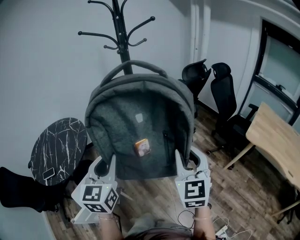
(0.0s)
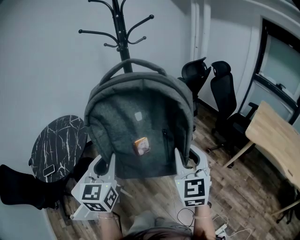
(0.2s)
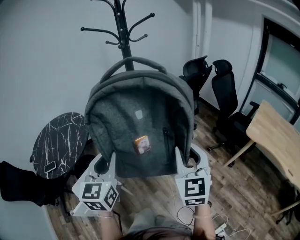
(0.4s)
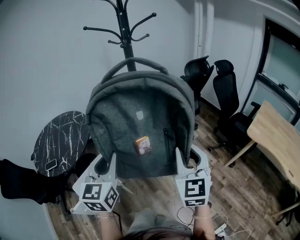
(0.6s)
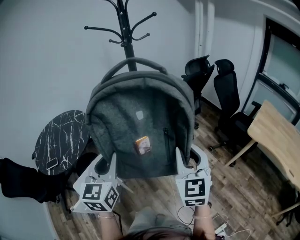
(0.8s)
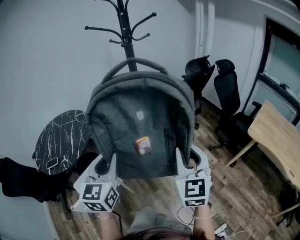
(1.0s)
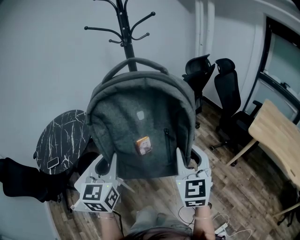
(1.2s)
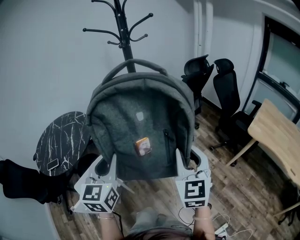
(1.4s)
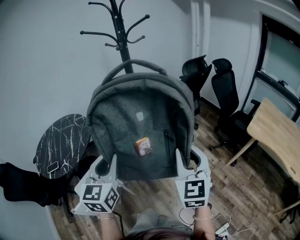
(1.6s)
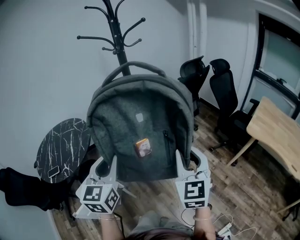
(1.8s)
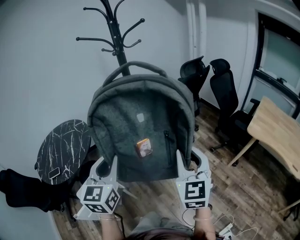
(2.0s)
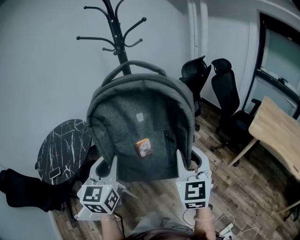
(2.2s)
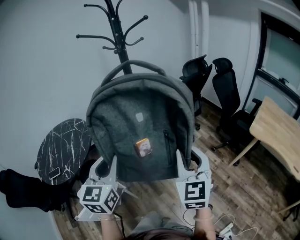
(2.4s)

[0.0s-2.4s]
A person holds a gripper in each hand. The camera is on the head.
0.0s to 1.2s: The left gripper moves backward, about 5 cm.
1.2s to 2.4s: The grippers move only a little.

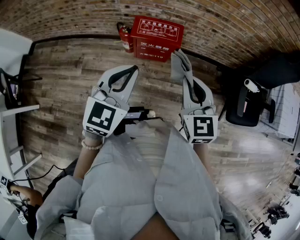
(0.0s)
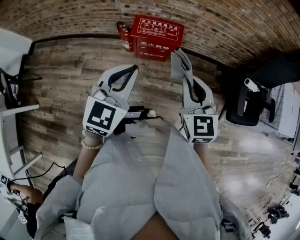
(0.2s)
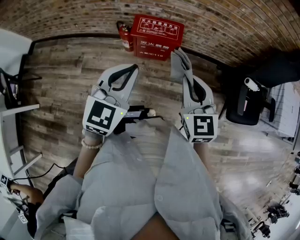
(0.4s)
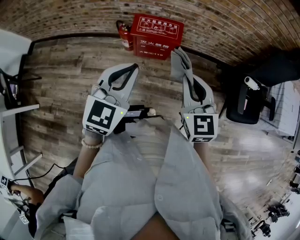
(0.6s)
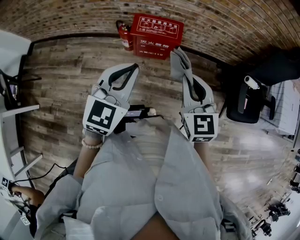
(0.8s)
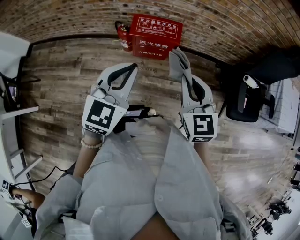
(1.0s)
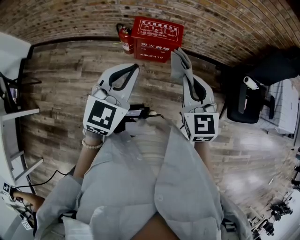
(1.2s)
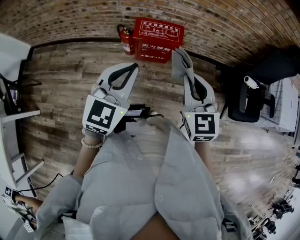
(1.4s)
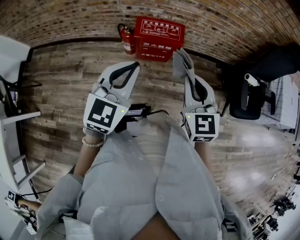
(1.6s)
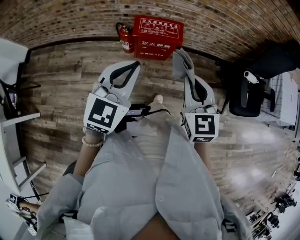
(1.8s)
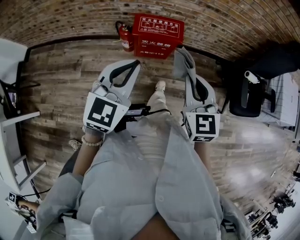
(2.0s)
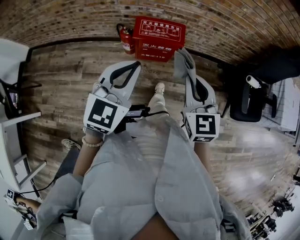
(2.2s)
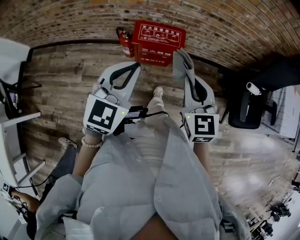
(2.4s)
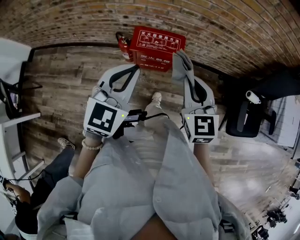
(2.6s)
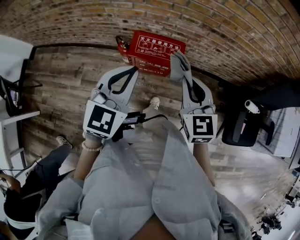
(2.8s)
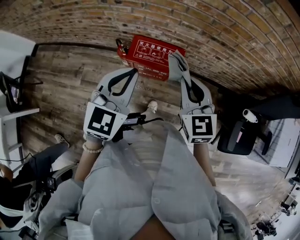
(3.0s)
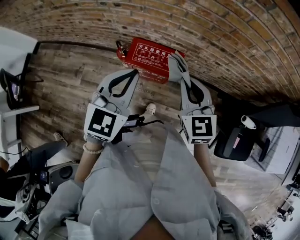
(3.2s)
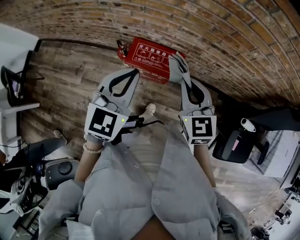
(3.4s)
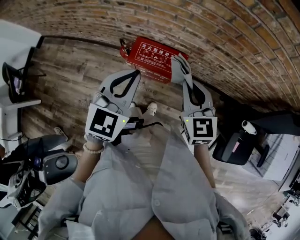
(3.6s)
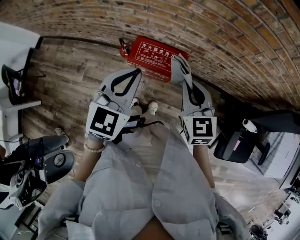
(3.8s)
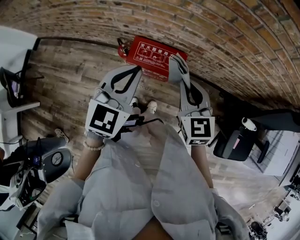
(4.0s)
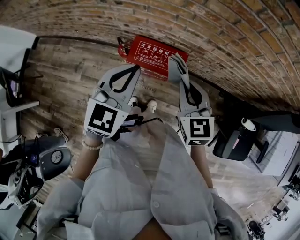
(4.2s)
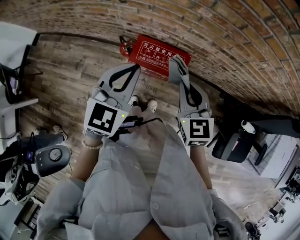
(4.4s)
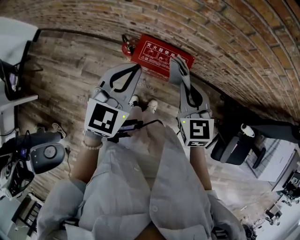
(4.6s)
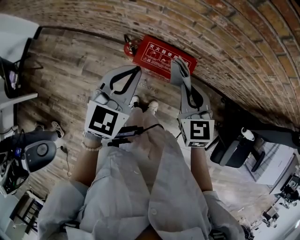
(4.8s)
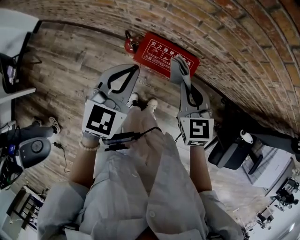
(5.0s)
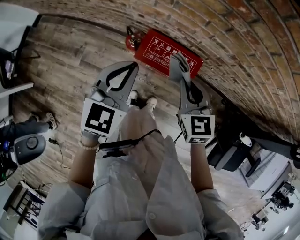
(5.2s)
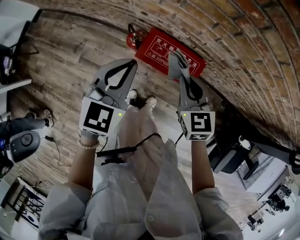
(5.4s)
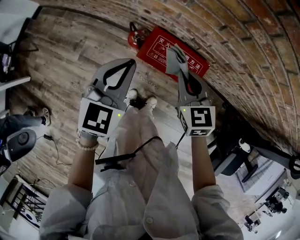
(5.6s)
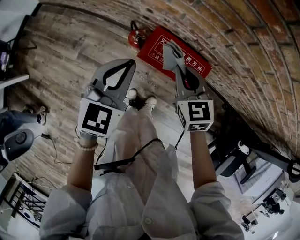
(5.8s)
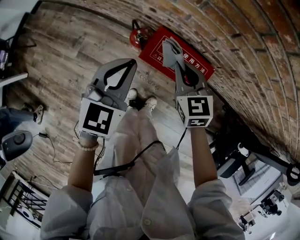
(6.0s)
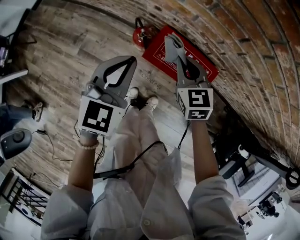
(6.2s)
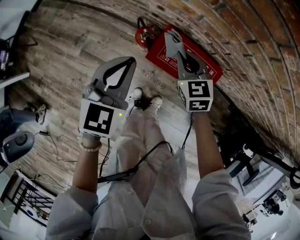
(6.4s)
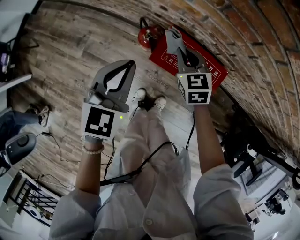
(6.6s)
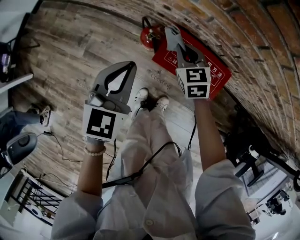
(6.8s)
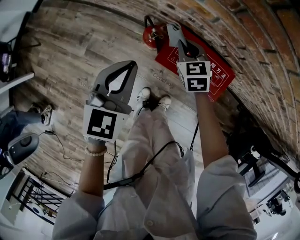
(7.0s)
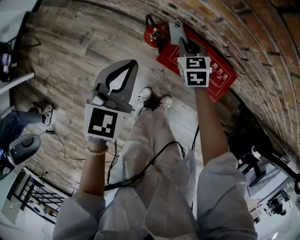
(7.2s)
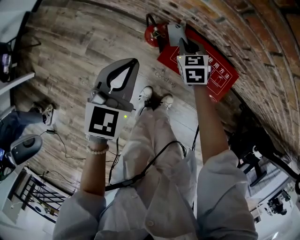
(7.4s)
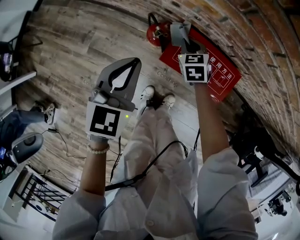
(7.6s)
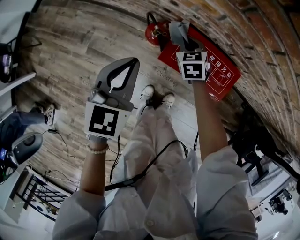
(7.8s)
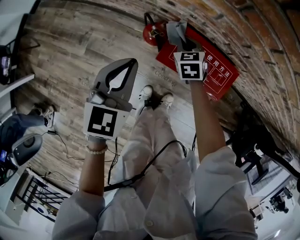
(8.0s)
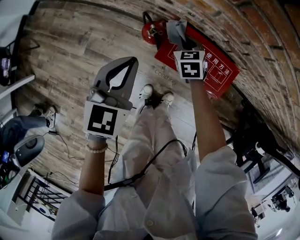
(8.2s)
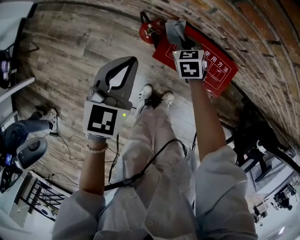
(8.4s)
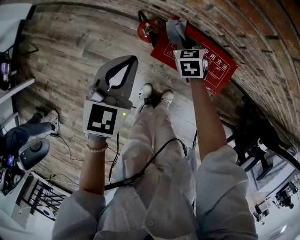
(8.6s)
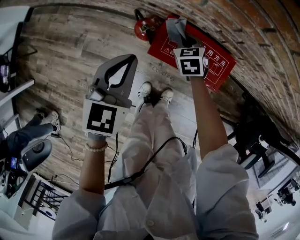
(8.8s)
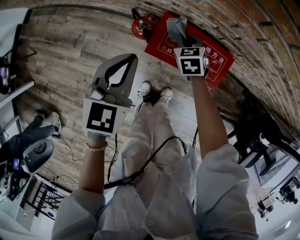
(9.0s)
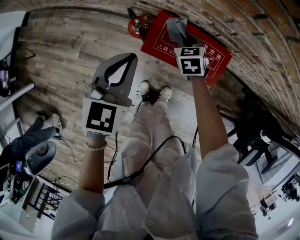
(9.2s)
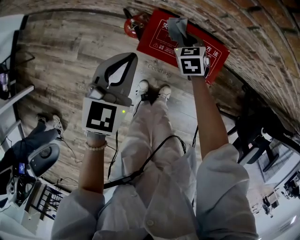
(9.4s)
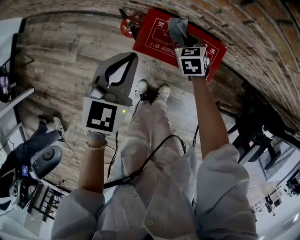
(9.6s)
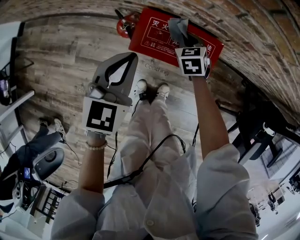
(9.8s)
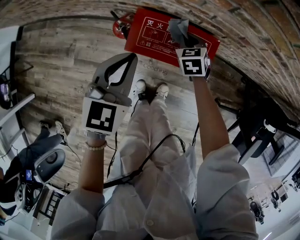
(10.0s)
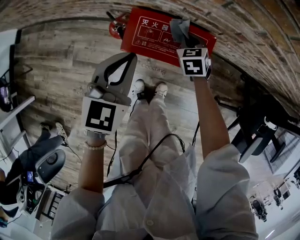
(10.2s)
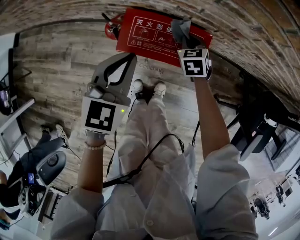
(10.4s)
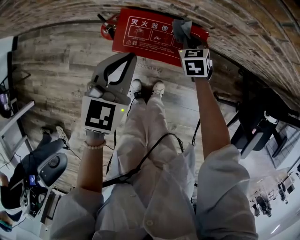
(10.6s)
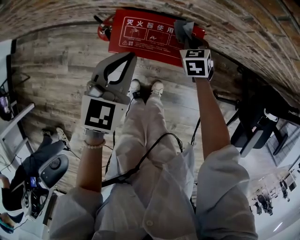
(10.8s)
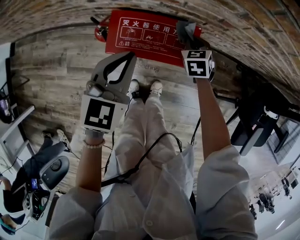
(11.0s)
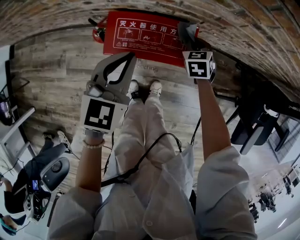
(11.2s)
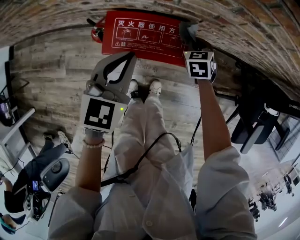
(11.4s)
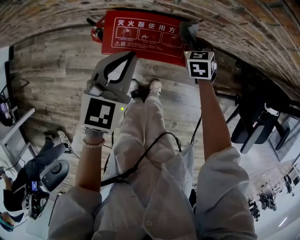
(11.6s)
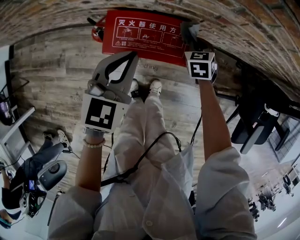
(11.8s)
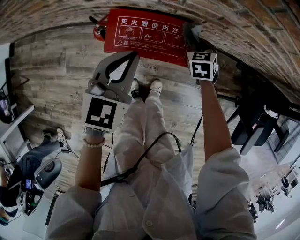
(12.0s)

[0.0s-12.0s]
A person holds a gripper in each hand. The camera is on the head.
0.0s to 1.6s: The grippers make only small movements.
1.6s to 3.0s: Both grippers move forward, some 20 cm.
3.0s to 4.4s: Both grippers travel together forward, some 5 cm.
4.4s to 6.0s: The left gripper moves downward, to the left and forward, about 20 cm, while the right gripper is displaced downward, forward and to the left by roughly 25 cm.
6.0s to 7.6s: The left gripper travels downward and to the left by some 10 cm. Meanwhile the right gripper travels downward and forward by some 25 cm.
7.6s to 9.0s: The right gripper goes approximately 5 cm to the right.
9.0s to 10.4s: The two grippers go roughly 15 cm to the right.
10.4s to 12.0s: The left gripper travels to the right by approximately 5 cm. Meanwhile the right gripper is displaced to the right by roughly 10 cm.

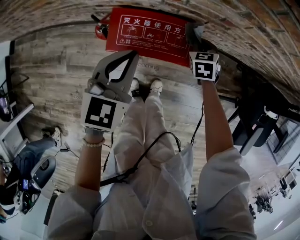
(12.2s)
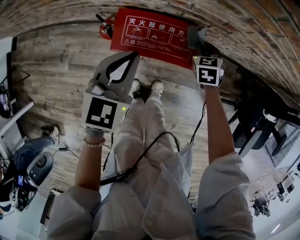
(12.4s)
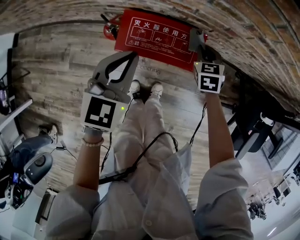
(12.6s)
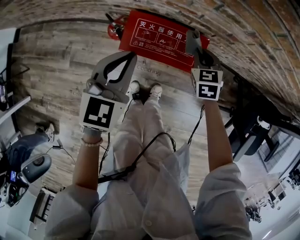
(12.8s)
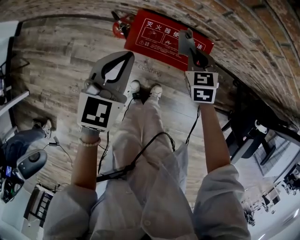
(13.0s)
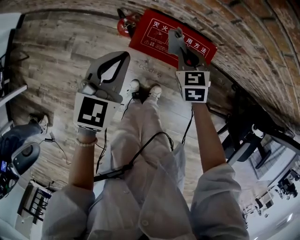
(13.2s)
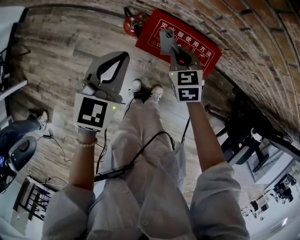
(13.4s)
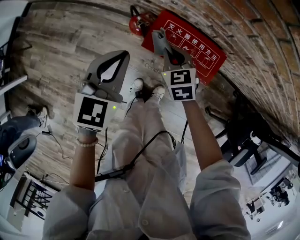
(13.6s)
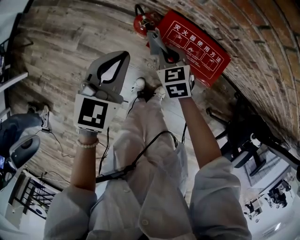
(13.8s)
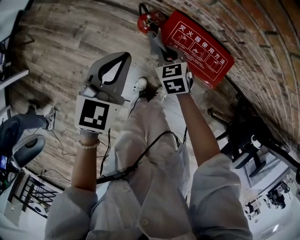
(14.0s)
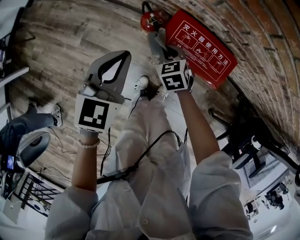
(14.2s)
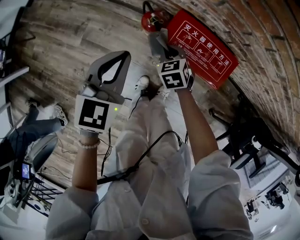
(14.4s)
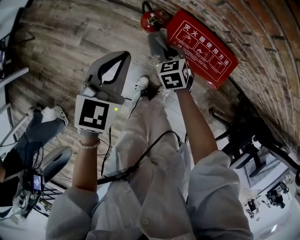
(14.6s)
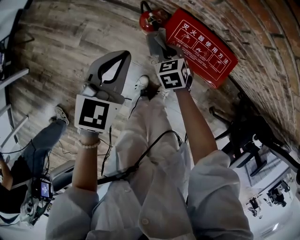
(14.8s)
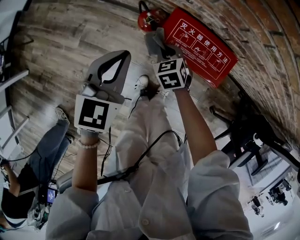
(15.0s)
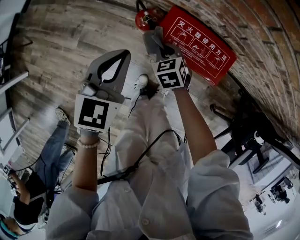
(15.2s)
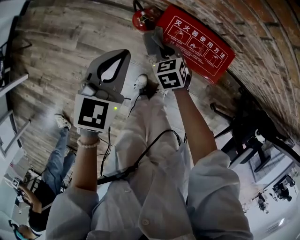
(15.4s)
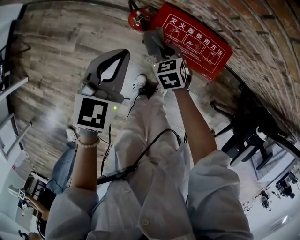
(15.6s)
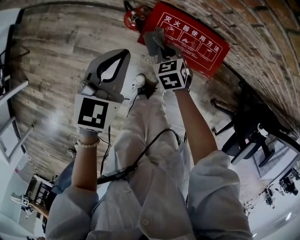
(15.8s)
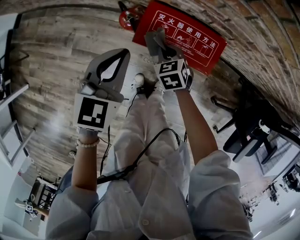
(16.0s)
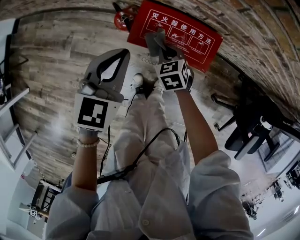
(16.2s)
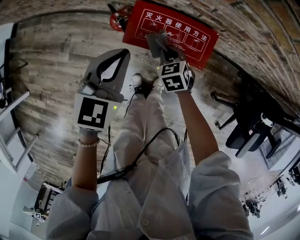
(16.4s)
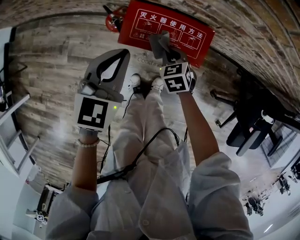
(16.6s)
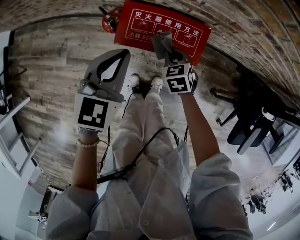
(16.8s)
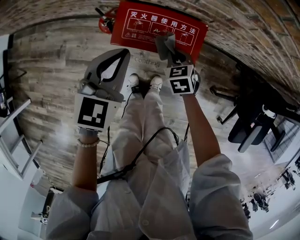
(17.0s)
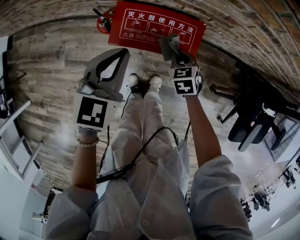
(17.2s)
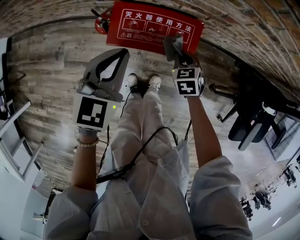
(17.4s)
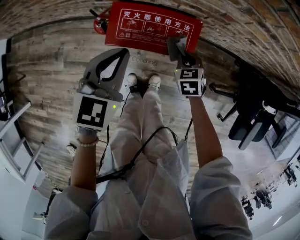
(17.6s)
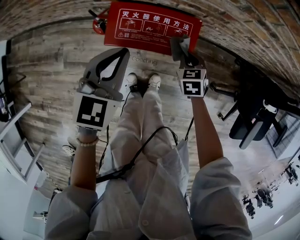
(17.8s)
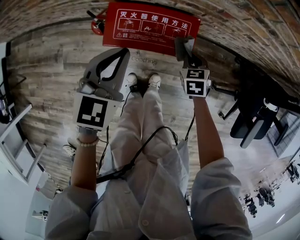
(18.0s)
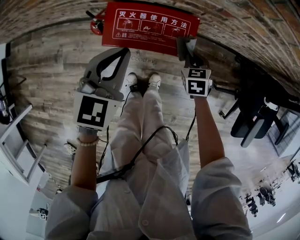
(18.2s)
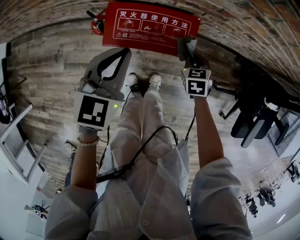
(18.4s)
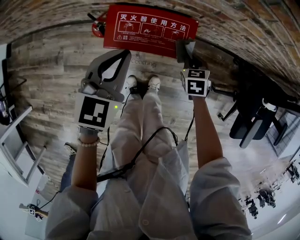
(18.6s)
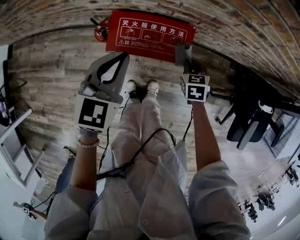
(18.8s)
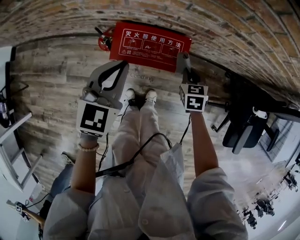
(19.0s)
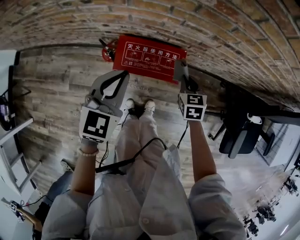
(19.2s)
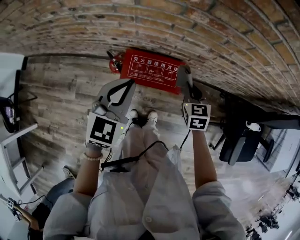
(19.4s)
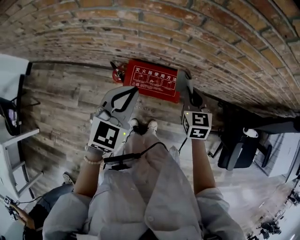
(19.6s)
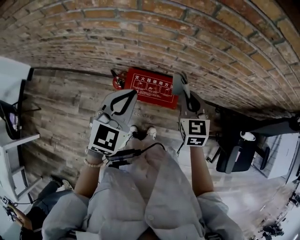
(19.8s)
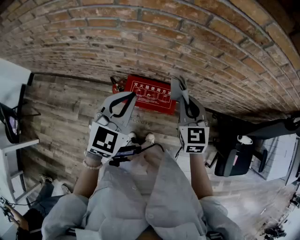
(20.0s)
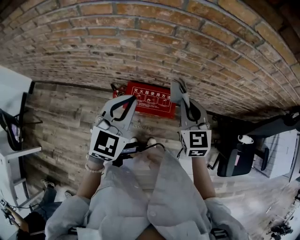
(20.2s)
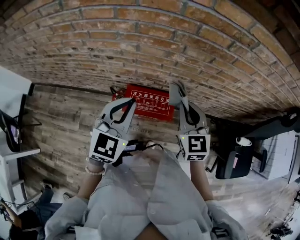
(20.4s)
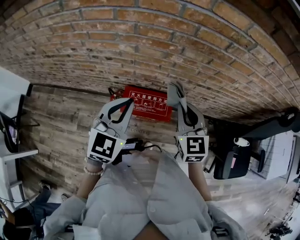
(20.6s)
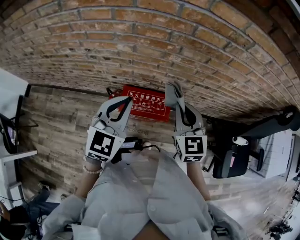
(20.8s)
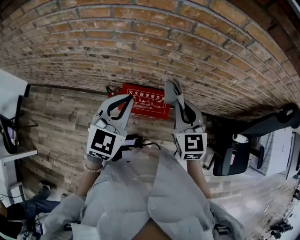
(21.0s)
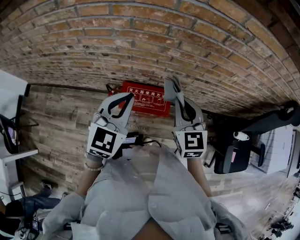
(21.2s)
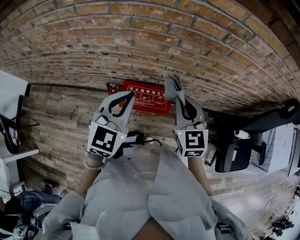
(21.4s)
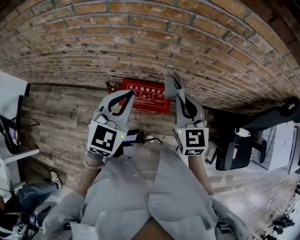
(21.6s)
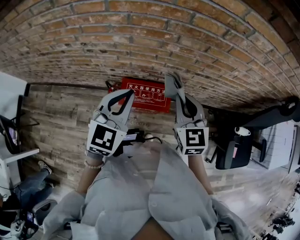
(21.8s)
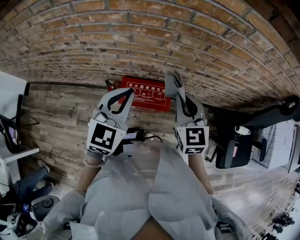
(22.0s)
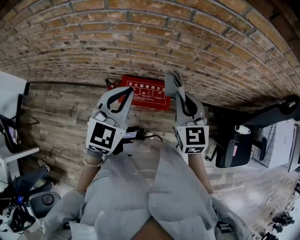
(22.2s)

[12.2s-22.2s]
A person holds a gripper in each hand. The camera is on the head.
12.2s to 13.6s: The left gripper moves about 15 cm. Meanwhile the right gripper moves some 30 cm, and changes its angle by approximately 30 degrees.
13.6s to 15.0s: The right gripper heads downward and to the left, covering approximately 10 cm.
15.0s to 16.4s: The grippers both shift to the right by about 10 cm.
16.4s to 18.0s: The right gripper heads to the right, covering about 20 cm, and turns by some 20 degrees; the left gripper is displaced to the right by about 5 cm.
18.0s to 19.4s: Both grippers travel together upward, roughly 20 cm.
19.4s to 20.8s: The right gripper heads upward, covering approximately 25 cm, and turns by approximately 20 degrees; the left gripper shifts approximately 15 cm upward.
20.8s to 22.2s: Both grippers stay about where they are.
